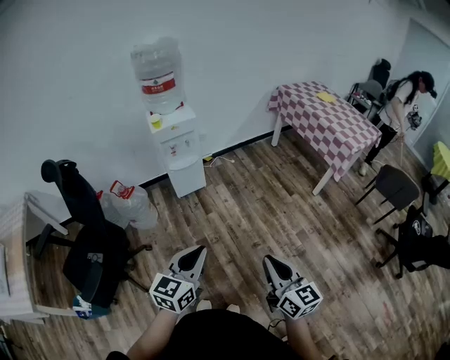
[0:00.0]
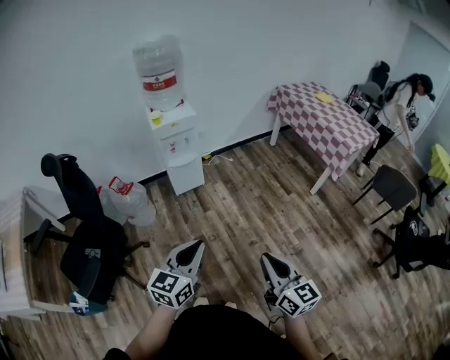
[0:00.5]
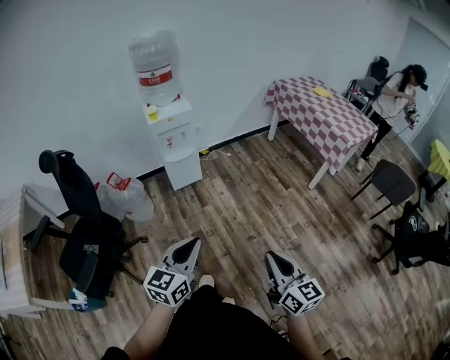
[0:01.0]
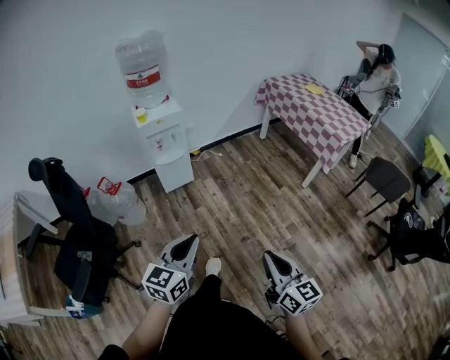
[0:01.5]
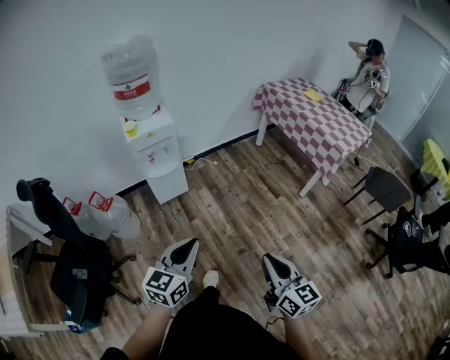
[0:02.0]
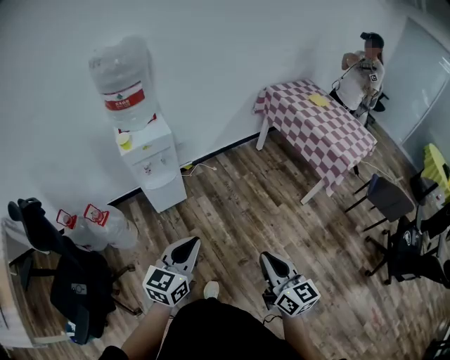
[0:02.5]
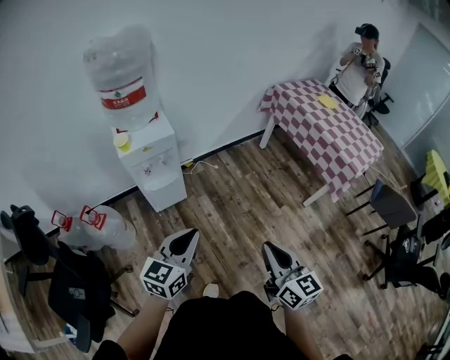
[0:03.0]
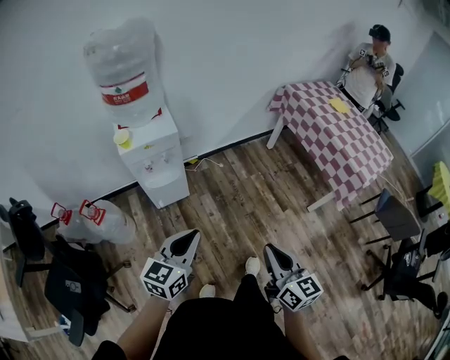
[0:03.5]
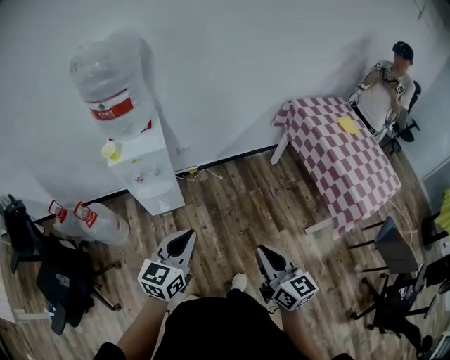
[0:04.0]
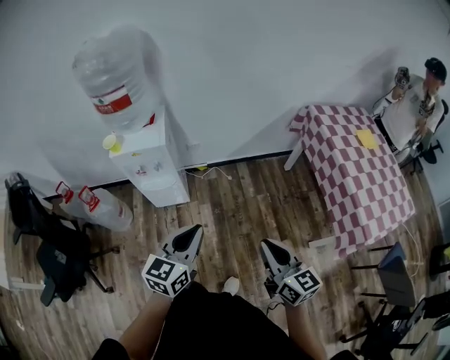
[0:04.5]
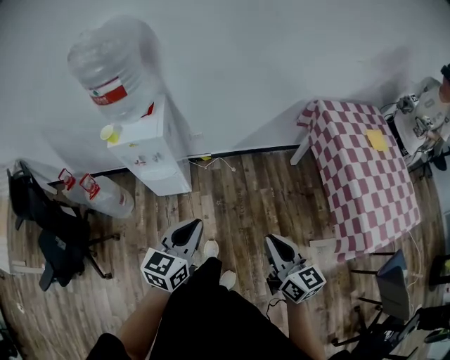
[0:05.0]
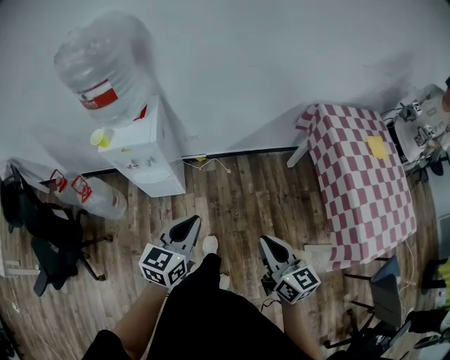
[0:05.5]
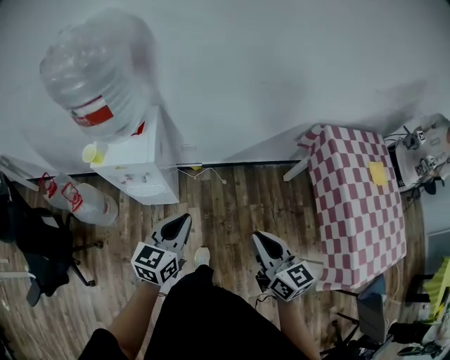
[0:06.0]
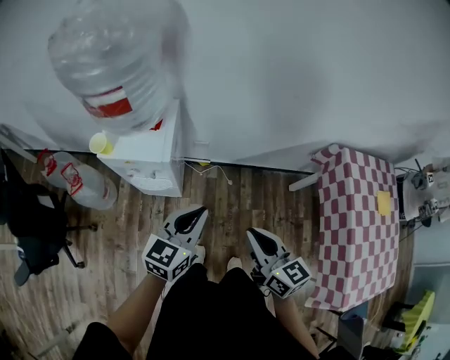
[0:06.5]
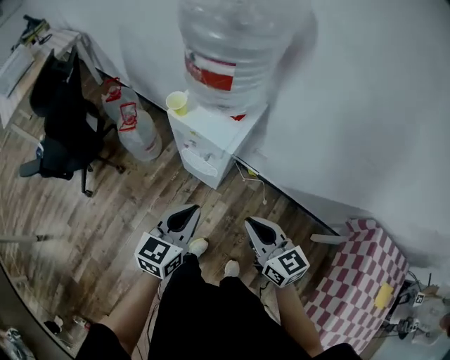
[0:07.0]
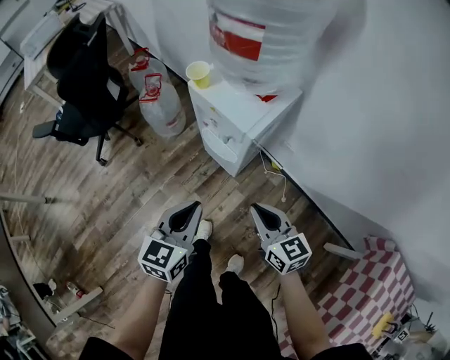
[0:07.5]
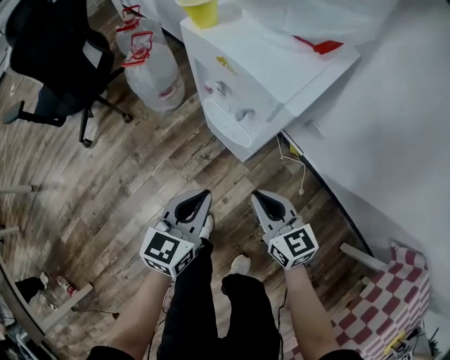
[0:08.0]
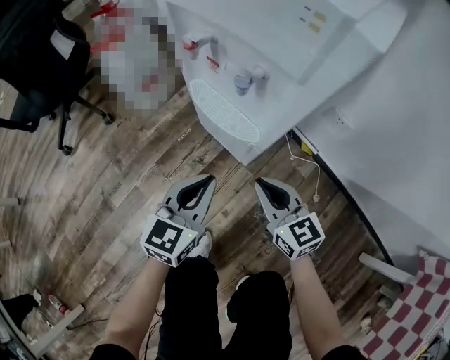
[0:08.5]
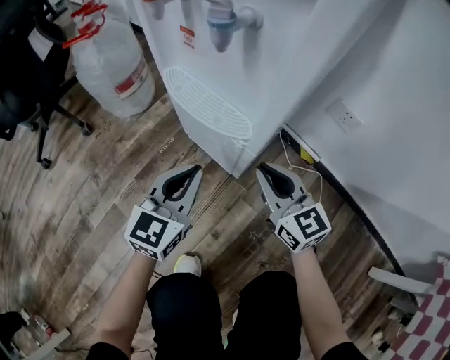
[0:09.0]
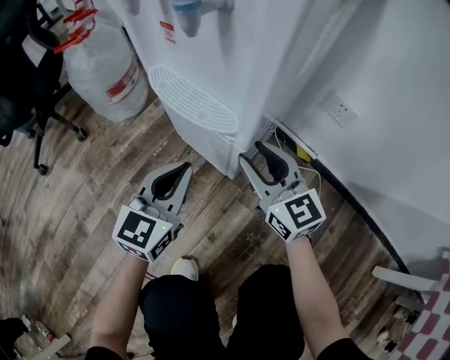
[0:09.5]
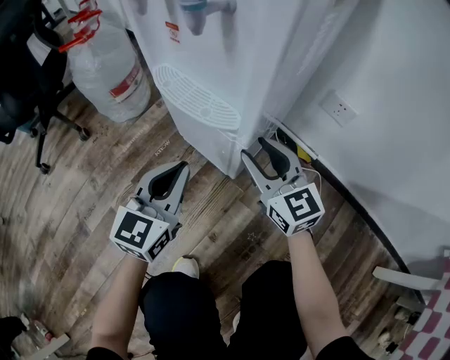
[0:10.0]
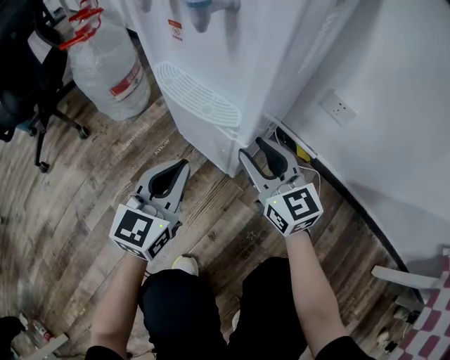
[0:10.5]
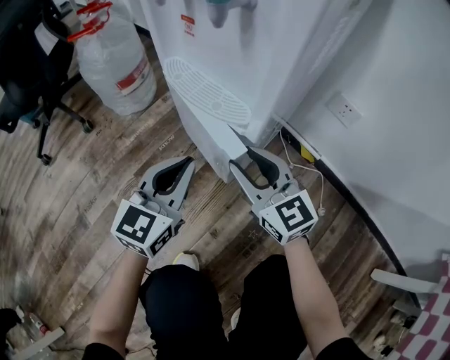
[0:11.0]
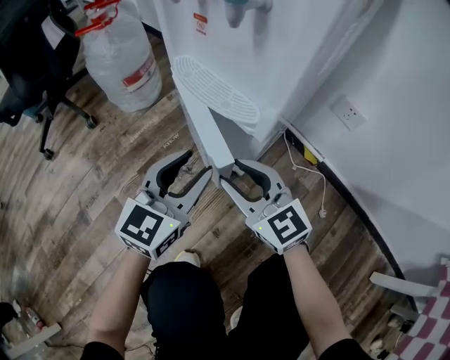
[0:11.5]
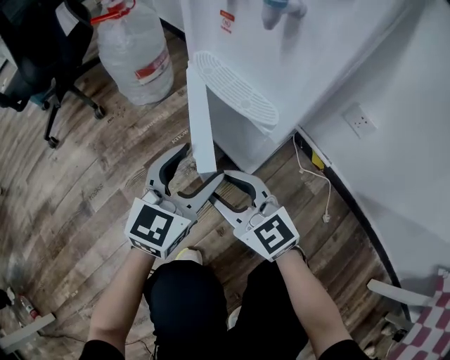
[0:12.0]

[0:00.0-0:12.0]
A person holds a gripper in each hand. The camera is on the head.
0:00.0 to 0:02.0: The two grippers go some 10 cm forward.
0:02.0 to 0:04.0: Both grippers travel together forward, approximately 35 cm.
0:04.0 to 0:06.0: The two grippers go about 25 cm forward.
0:06.0 to 0:08.0: Both grippers travel together downward, about 30 cm. The right gripper rotates roughly 60 degrees. The left gripper turns by about 50 degrees.
0:08.0 to 0:10.0: The left gripper goes some 25 cm downward. The right gripper heads downward and forward, covering some 30 cm, swivels some 20 degrees, and opens.
0:10.0 to 0:12.0: The left gripper opens its fingers, while the right gripper goes some 15 cm to the left and backward, and rotates roughly 20 degrees.

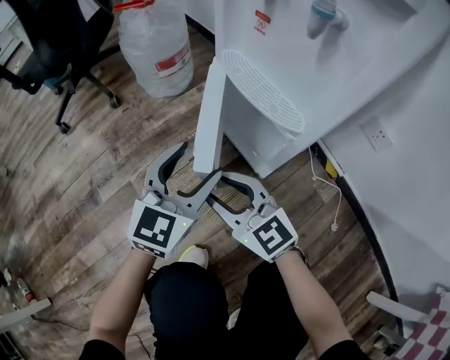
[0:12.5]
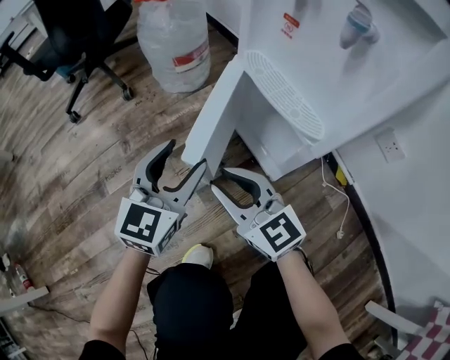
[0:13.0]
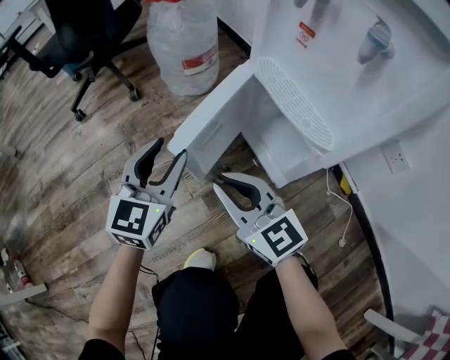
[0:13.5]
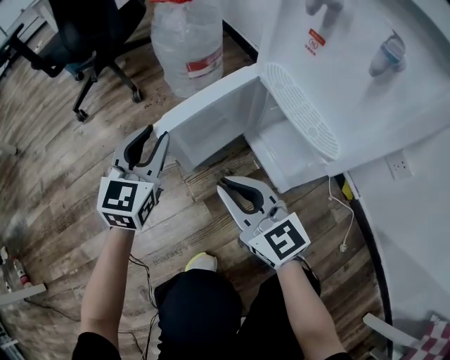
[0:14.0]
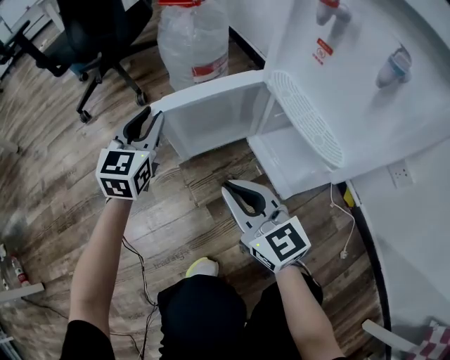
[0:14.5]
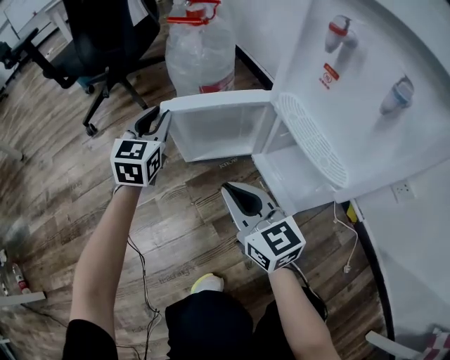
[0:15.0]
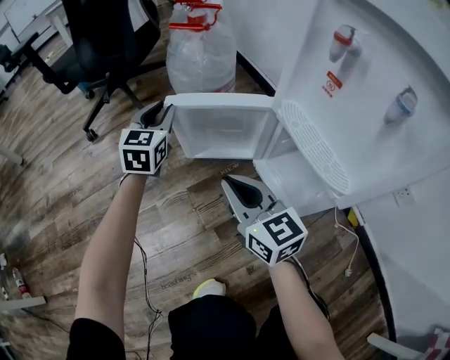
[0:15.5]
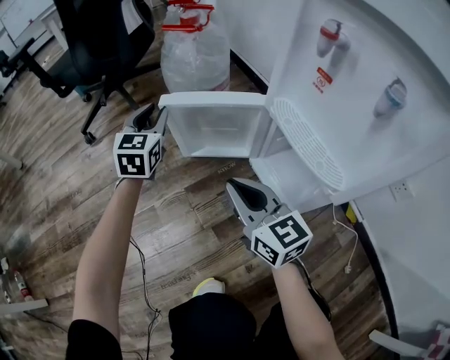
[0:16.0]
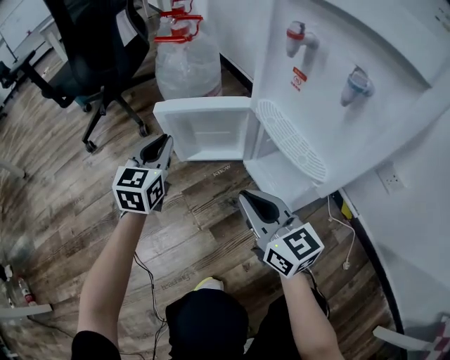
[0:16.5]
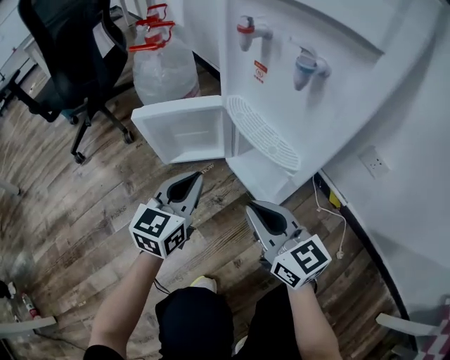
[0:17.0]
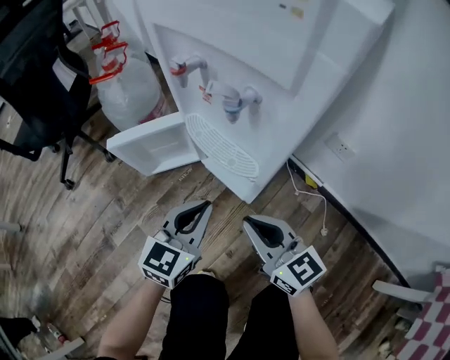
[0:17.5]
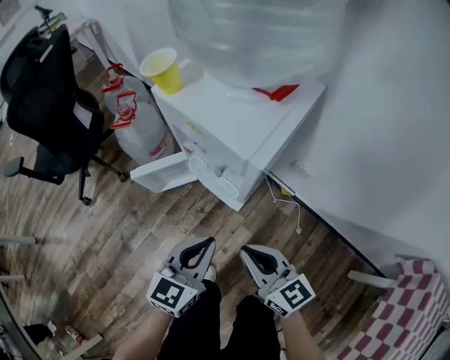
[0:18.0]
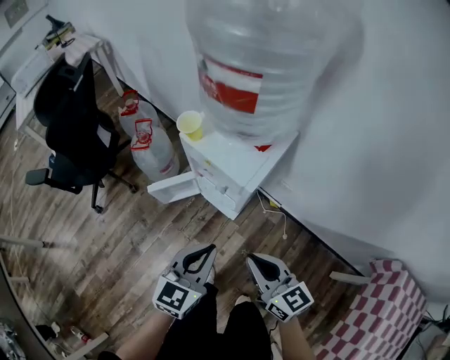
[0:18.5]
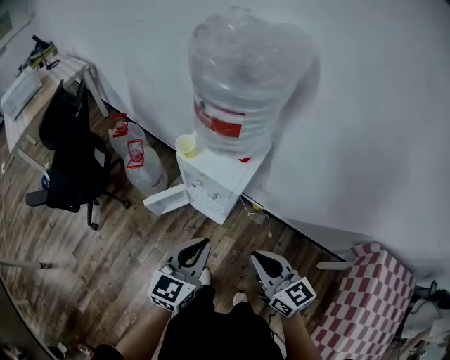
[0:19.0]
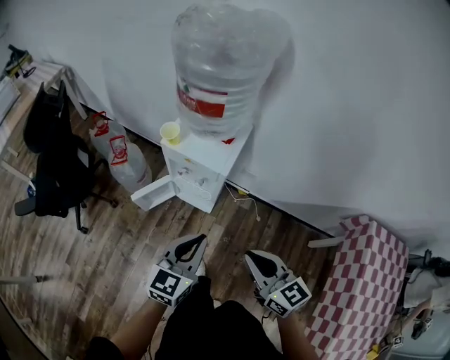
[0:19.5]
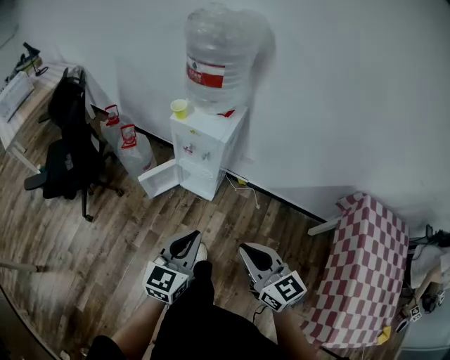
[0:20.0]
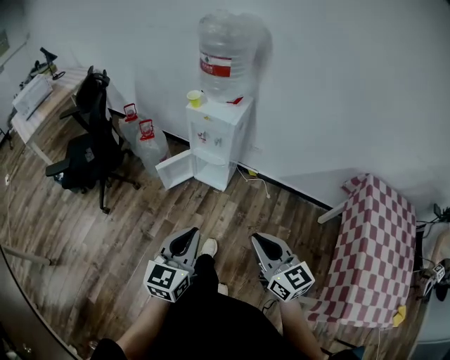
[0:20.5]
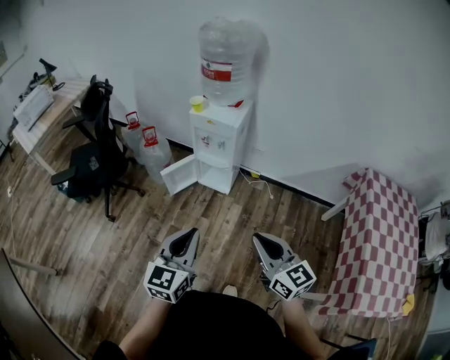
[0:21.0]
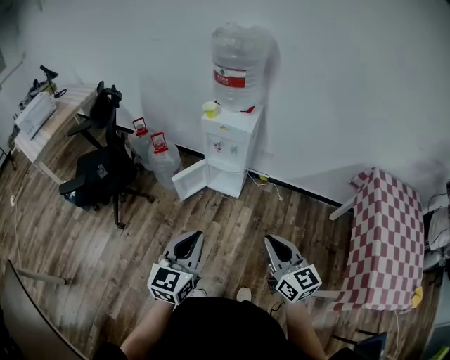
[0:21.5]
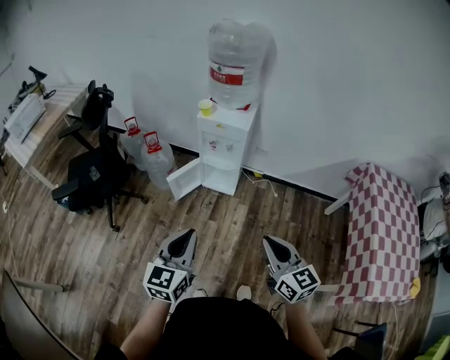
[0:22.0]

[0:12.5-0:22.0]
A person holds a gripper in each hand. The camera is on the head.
0:12.5 to 0:14.5: The right gripper shifts by roughly 5 cm, and closes its fingers, while the left gripper goes approximately 25 cm forward and to the left, rotates some 20 degrees, and closes.
0:14.5 to 0:16.5: The right gripper travels to the right by about 5 cm, while the left gripper travels forward and back again, approximately 10 cm each way.
0:16.5 to 0:18.0: The left gripper shifts by about 40 cm, and turns by about 40 degrees. Meanwhile the right gripper travels upward by some 25 cm.
0:18.0 to 0:20.0: The grippers both shift upward and backward by roughly 40 cm.
0:20.0 to 0:22.0: The right gripper travels backward and to the left by roughly 15 cm, while the left gripper moves to the left and backward, some 20 cm.

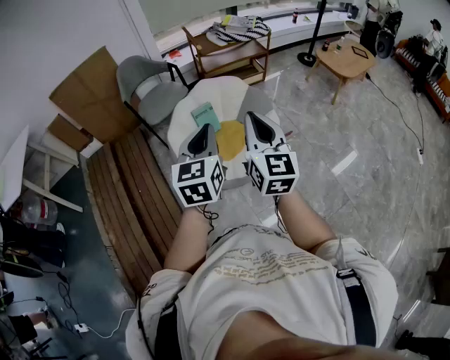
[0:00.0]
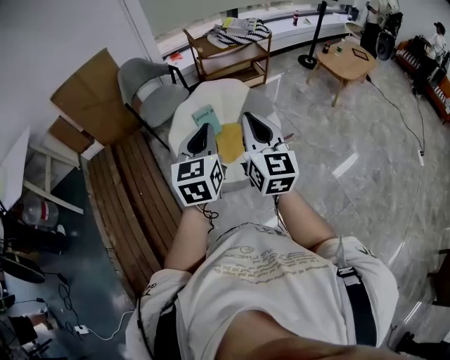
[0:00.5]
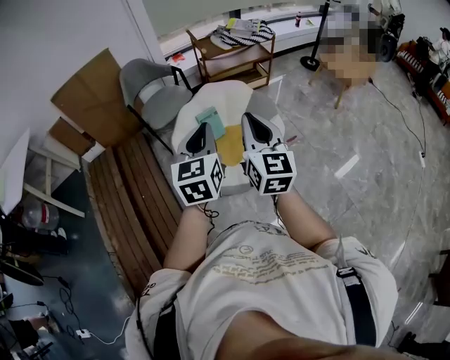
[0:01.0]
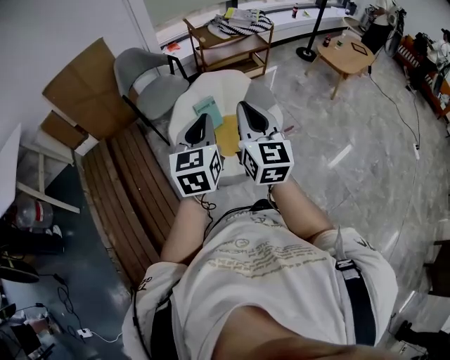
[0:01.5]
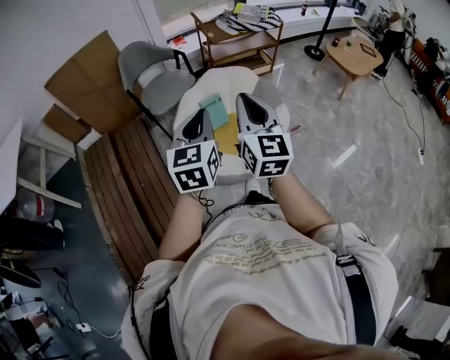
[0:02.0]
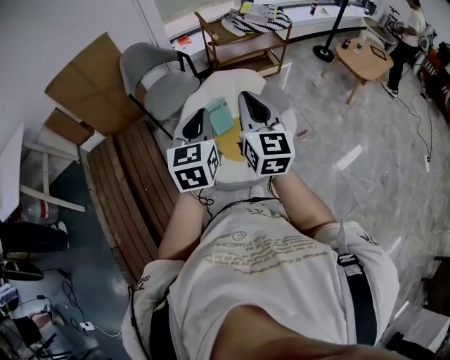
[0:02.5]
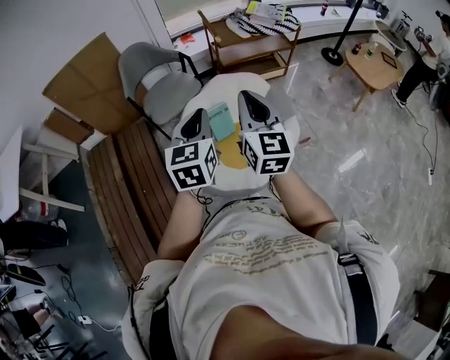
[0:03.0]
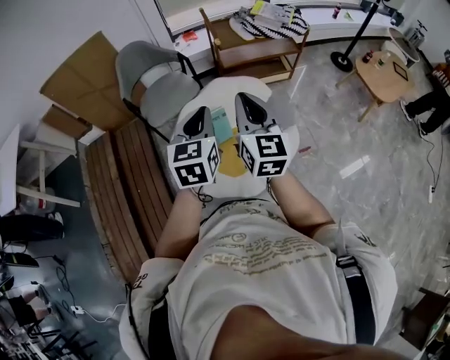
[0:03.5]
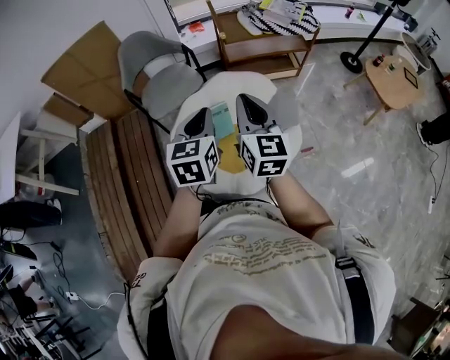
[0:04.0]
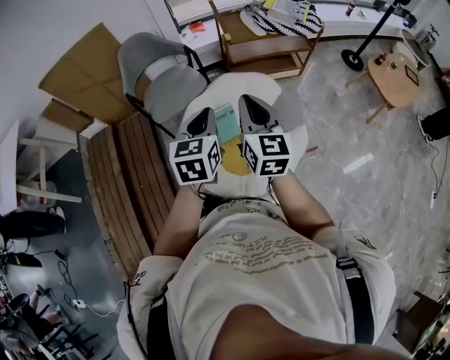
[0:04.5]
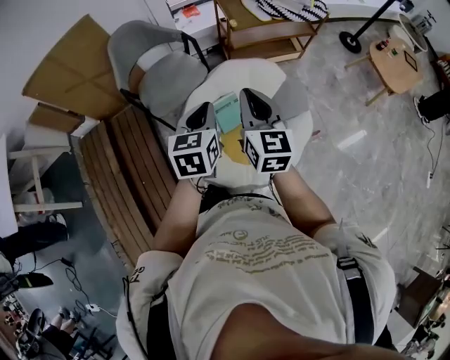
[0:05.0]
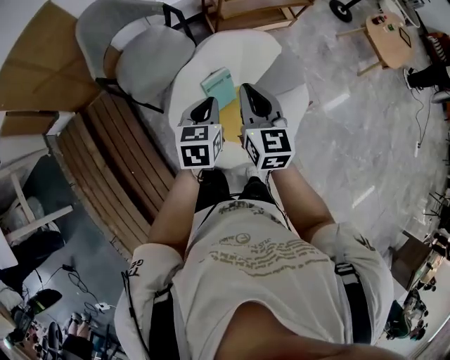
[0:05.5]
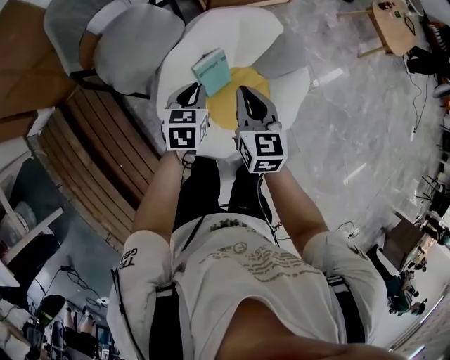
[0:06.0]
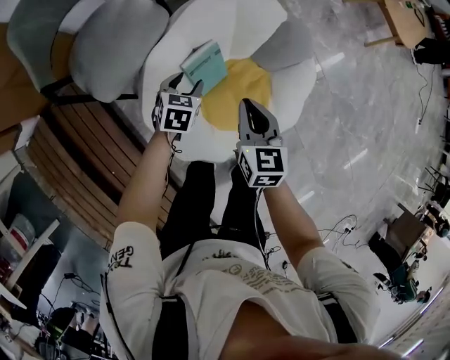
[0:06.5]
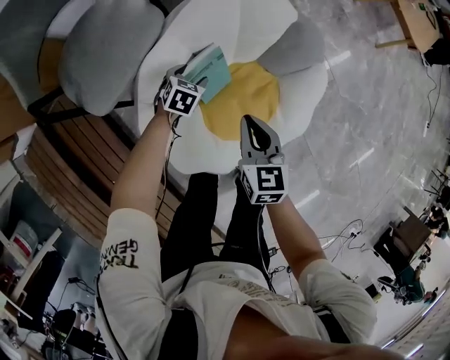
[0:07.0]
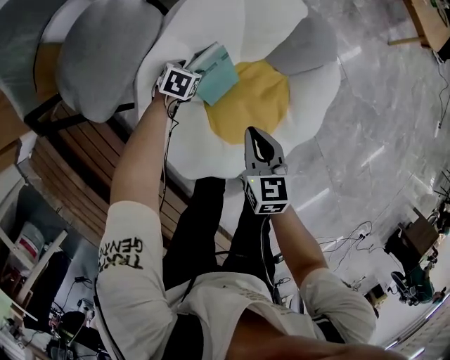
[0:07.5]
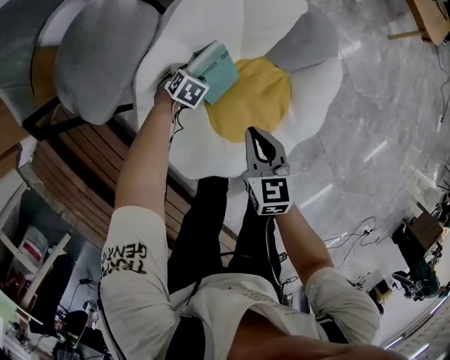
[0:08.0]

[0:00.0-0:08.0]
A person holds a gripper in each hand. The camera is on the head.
0:00.0 to 0:02.0: Both grippers travel together to the left and forward, roughly 10 cm.
0:02.0 to 0:04.0: Both grippers move forward, roughly 25 cm.
0:04.0 to 0:06.0: The left gripper travels downward, forward and to the left by approximately 35 cm, and changes its angle by some 30 degrees. Meanwhile the right gripper shifts roughly 30 cm downward, to the left and forward, and changes its angle by roughly 30 degrees.
0:06.0 to 0:08.0: The left gripper shifts approximately 40 cm downward, swivels roughly 40 degrees, and opens up, while the right gripper shifts about 25 cm downward.
